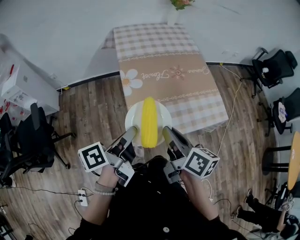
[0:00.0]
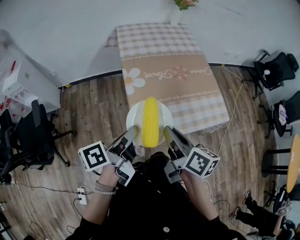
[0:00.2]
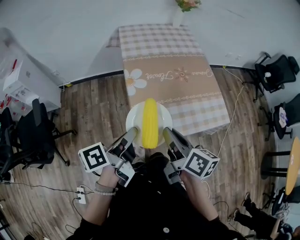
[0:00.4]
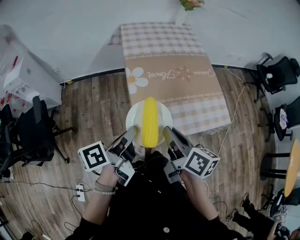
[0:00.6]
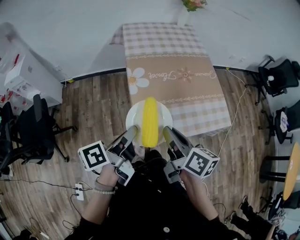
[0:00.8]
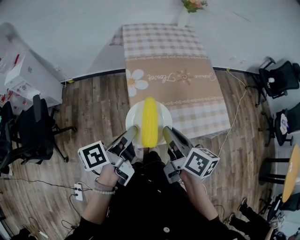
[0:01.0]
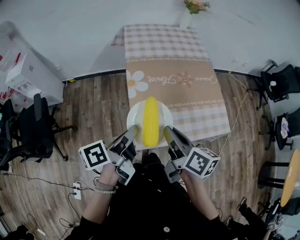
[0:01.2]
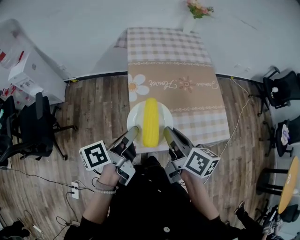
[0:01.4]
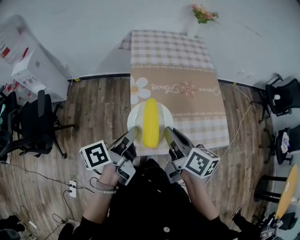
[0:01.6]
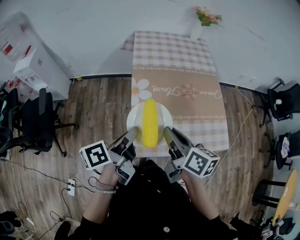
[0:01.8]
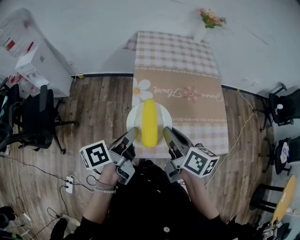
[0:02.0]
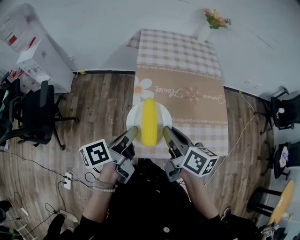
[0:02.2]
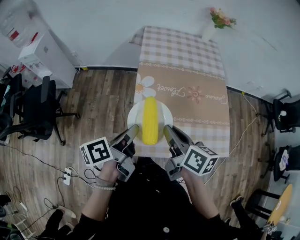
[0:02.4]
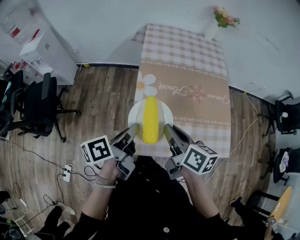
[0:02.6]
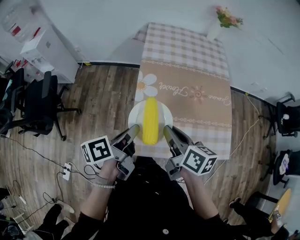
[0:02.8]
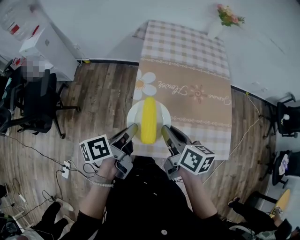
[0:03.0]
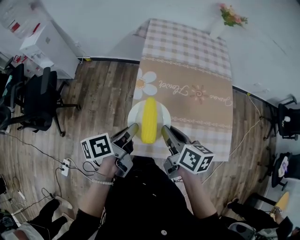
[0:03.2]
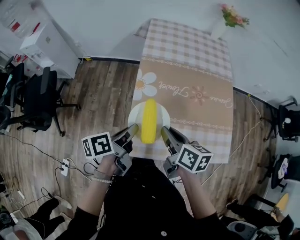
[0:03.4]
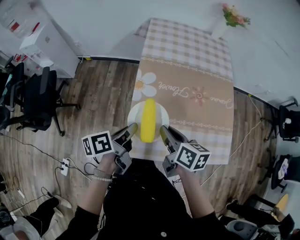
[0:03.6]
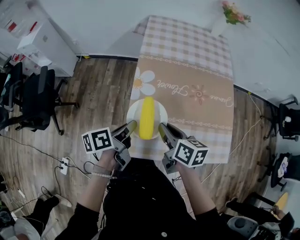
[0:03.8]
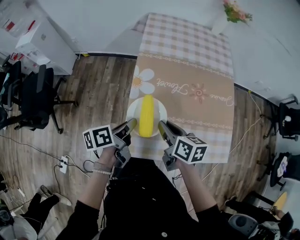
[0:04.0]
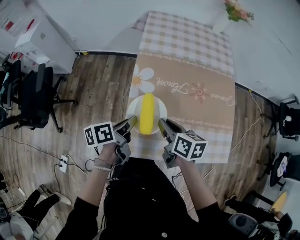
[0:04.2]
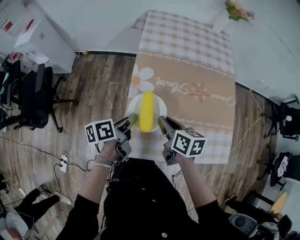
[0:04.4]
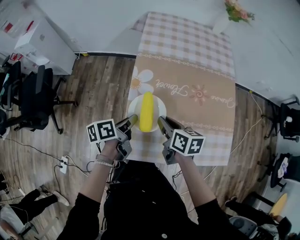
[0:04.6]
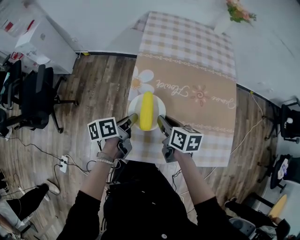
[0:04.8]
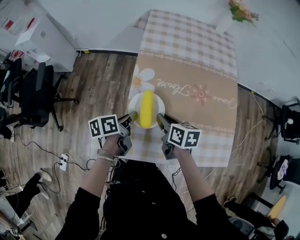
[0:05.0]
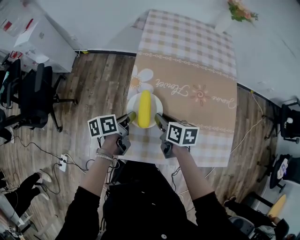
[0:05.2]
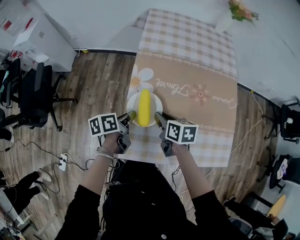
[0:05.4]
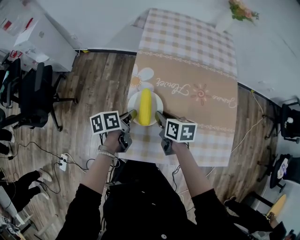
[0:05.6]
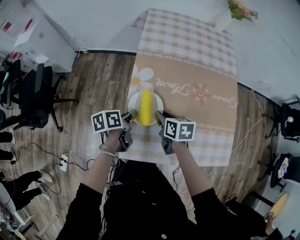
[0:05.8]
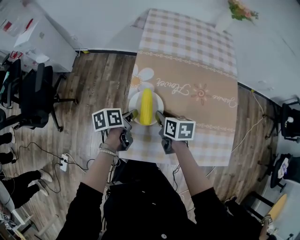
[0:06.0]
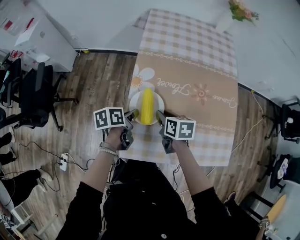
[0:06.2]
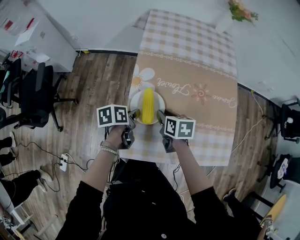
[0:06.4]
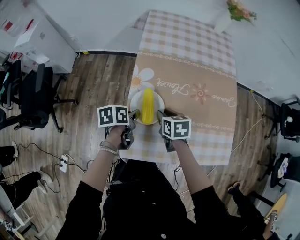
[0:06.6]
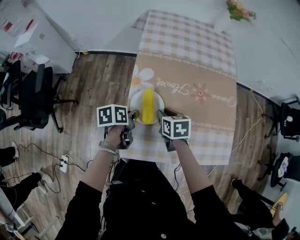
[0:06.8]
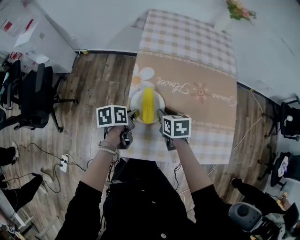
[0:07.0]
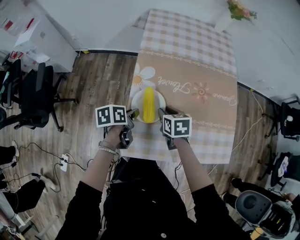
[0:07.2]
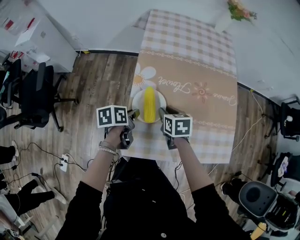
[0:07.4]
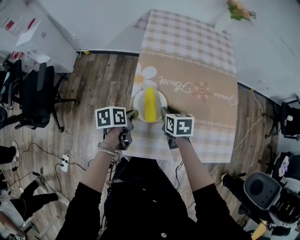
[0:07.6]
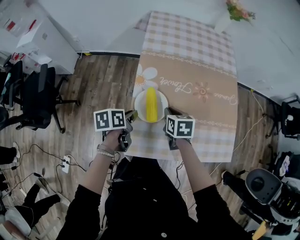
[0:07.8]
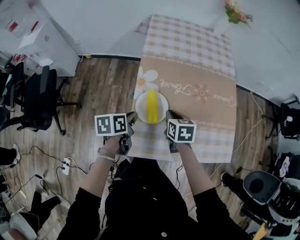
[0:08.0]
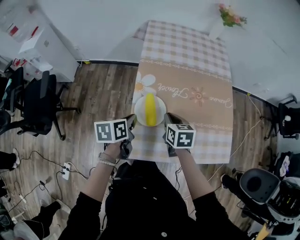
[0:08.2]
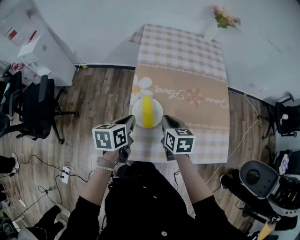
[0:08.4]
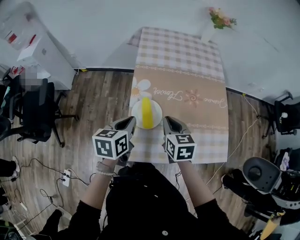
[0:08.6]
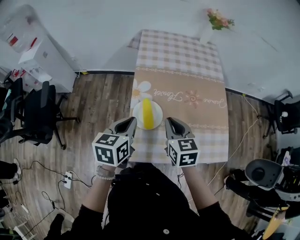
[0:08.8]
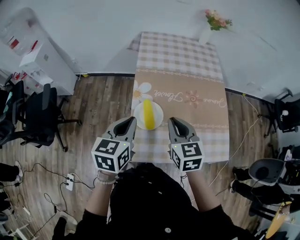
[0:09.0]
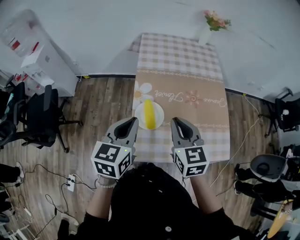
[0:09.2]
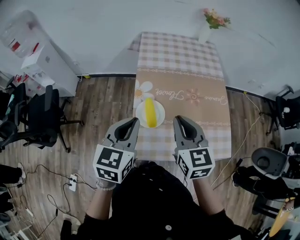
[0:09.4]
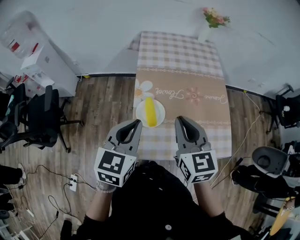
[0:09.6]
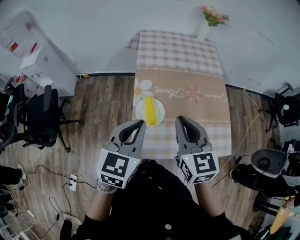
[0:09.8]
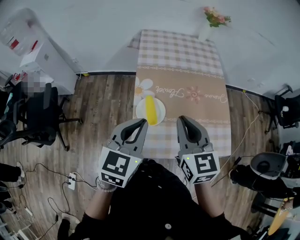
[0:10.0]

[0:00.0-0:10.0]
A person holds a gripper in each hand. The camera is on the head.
0:00.0 to 0:01.4: The right gripper shifts roughly 5 cm forward.
0:01.4 to 0:02.8: The right gripper moves forward, roughly 5 cm; the left gripper moves approximately 5 cm.
0:02.8 to 0:04.2: Both grippers move downward and forward, roughly 10 cm.
0:04.2 to 0:05.8: Both grippers travel together downward, some 10 cm.
0:05.8 to 0:07.2: The grippers stay close to where they were, moving slightly.
0:07.2 to 0:08.6: The two grippers go approximately 15 cm upward. The left gripper changes its angle by approximately 30 degrees. Meanwhile the right gripper closes up.
0:08.6 to 0:10.0: The left gripper shifts some 15 cm upward and backward, and changes its angle by approximately 30 degrees; the right gripper travels upward by roughly 15 cm, and changes its angle by roughly 20 degrees.

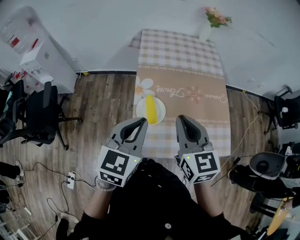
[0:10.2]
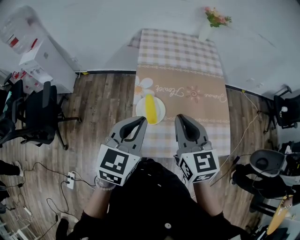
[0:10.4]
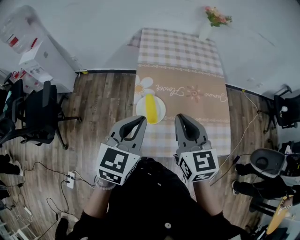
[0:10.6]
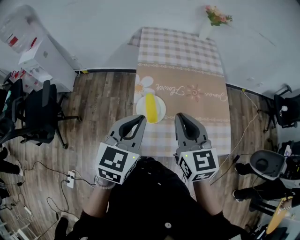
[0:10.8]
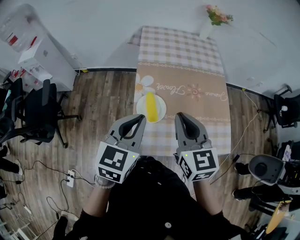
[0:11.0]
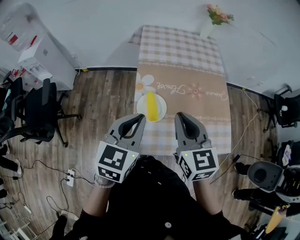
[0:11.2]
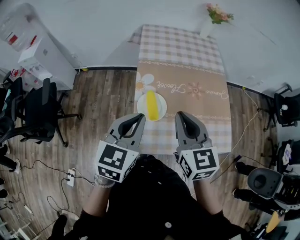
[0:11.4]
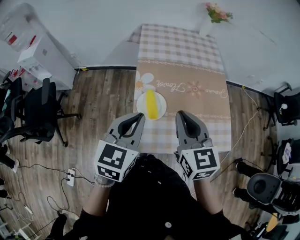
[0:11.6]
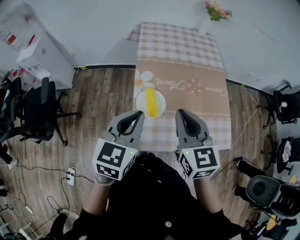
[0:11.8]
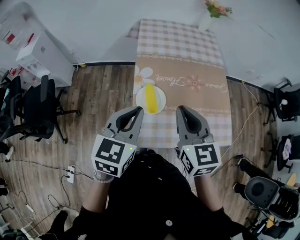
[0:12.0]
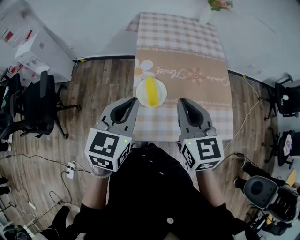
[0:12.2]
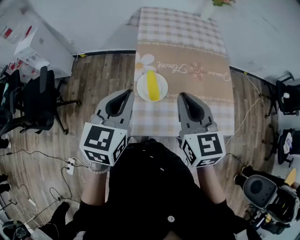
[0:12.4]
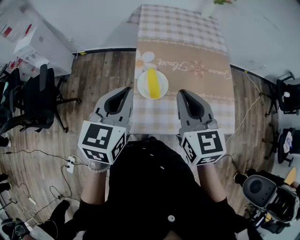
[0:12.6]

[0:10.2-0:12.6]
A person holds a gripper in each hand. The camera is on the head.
0:10.2 to 0:12.6: The grippers move only a little.

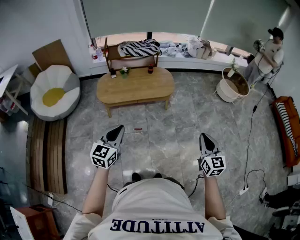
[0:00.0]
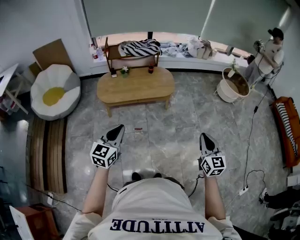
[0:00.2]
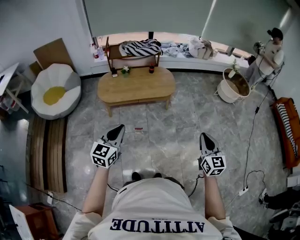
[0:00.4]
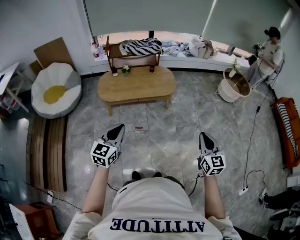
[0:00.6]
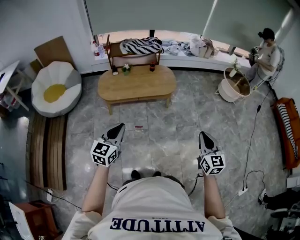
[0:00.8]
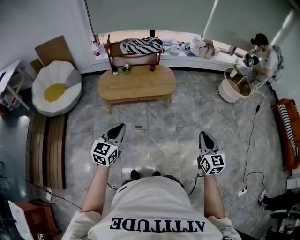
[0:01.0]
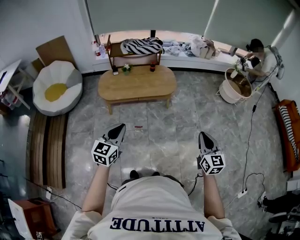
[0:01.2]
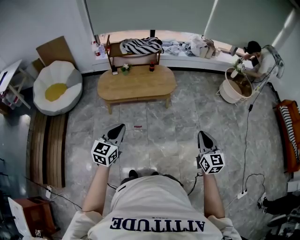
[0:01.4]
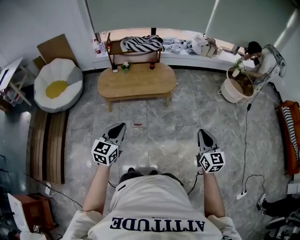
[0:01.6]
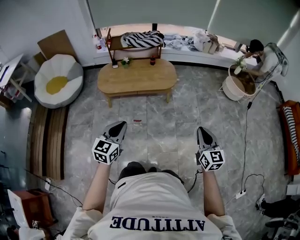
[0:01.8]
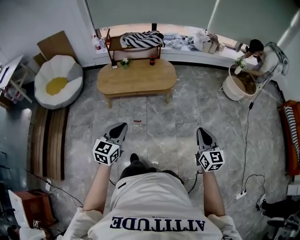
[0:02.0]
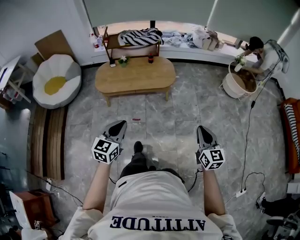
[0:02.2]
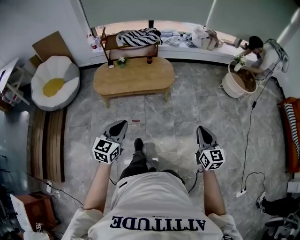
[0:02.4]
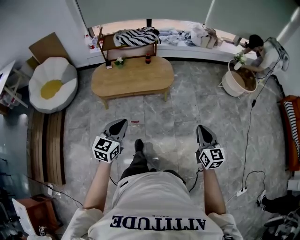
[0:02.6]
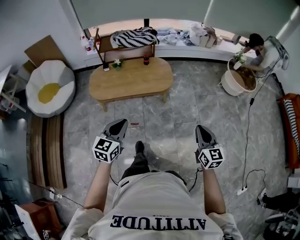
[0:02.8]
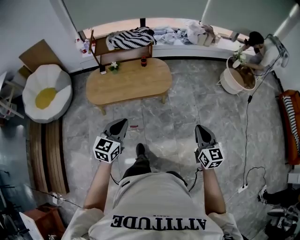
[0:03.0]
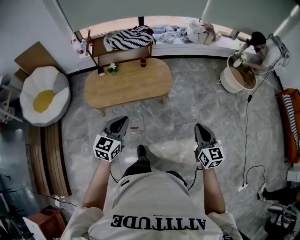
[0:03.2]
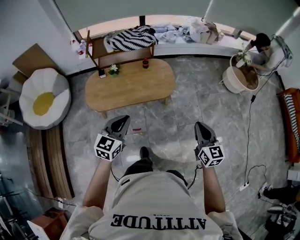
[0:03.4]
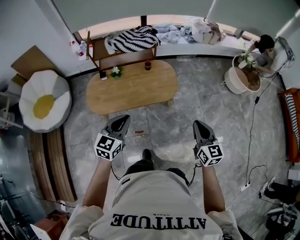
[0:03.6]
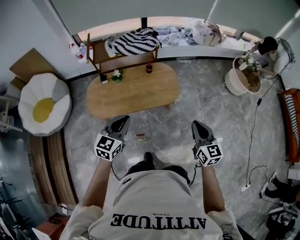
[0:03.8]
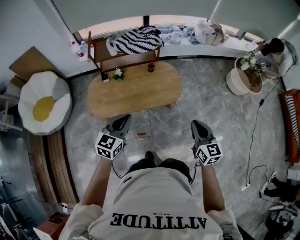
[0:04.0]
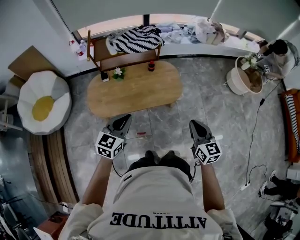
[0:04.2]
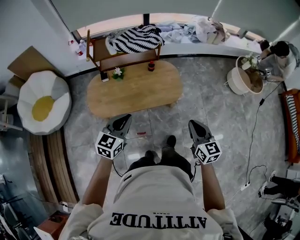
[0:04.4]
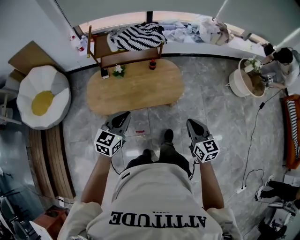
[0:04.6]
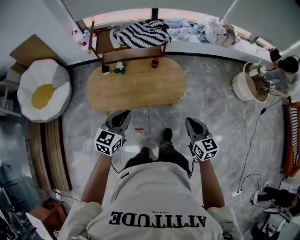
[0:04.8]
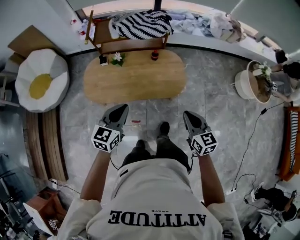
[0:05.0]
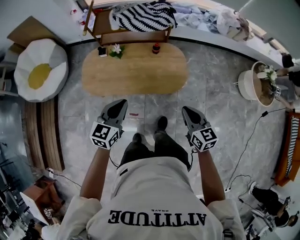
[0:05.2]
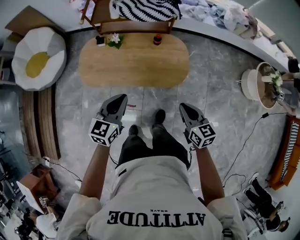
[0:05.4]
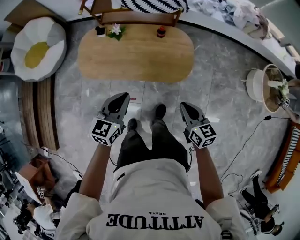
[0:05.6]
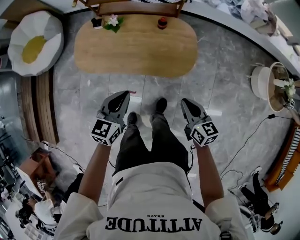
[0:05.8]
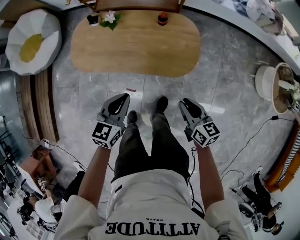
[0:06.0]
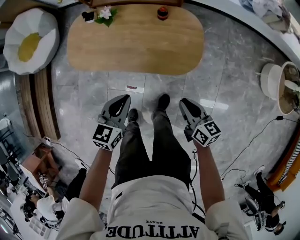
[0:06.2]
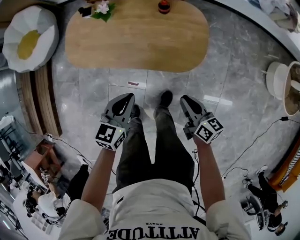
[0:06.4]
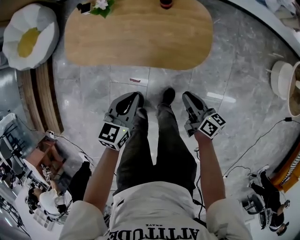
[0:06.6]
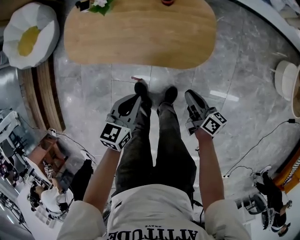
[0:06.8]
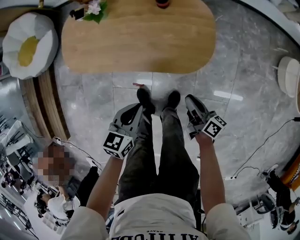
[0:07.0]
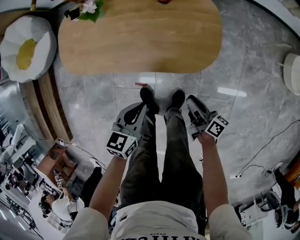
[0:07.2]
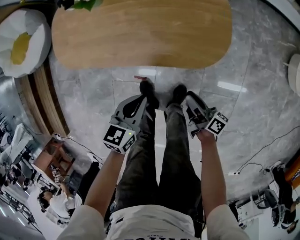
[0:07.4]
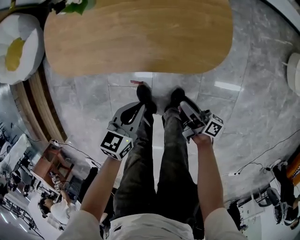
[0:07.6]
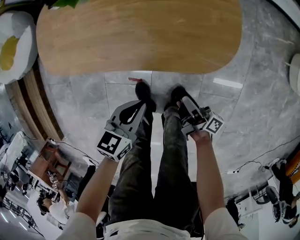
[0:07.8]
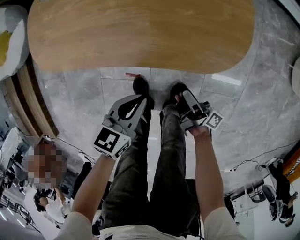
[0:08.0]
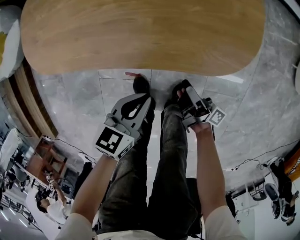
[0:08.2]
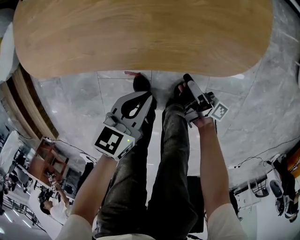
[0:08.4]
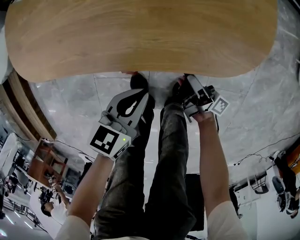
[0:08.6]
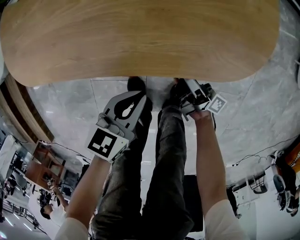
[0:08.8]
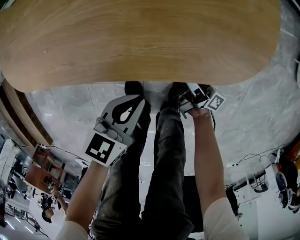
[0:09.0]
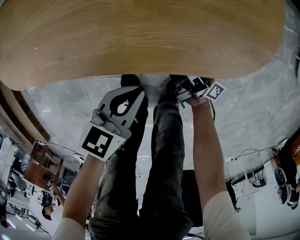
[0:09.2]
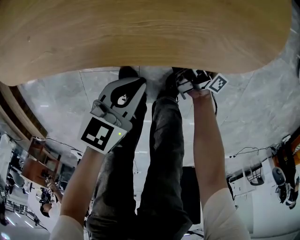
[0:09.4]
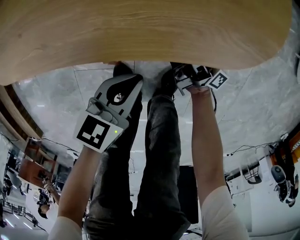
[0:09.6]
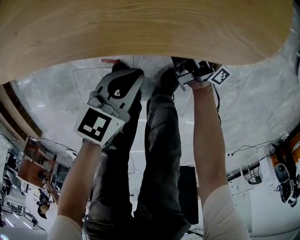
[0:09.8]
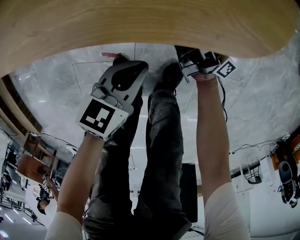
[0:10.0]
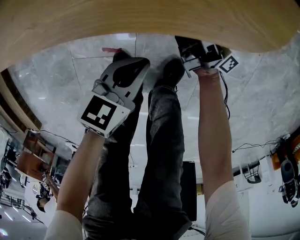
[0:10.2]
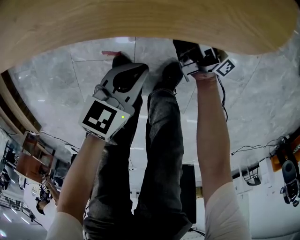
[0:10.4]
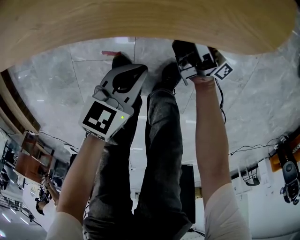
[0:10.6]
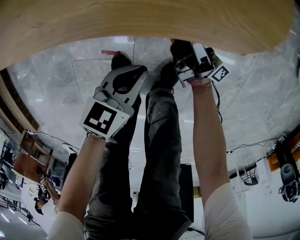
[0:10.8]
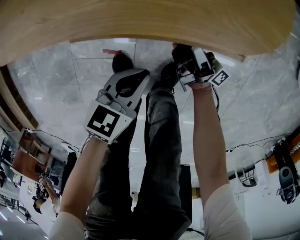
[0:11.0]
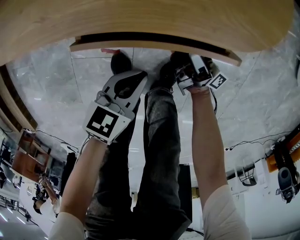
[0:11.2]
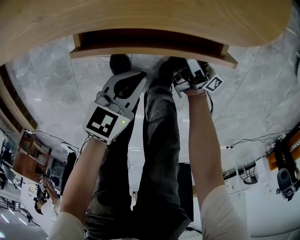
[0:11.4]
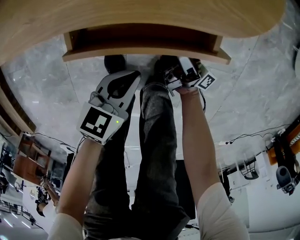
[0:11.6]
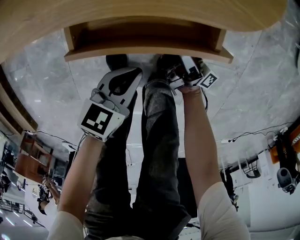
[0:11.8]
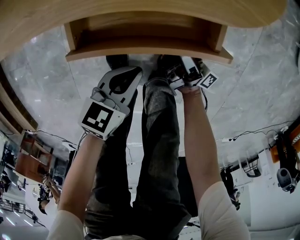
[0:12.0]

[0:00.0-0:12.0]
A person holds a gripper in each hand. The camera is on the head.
0:00.0 to 0:01.6: The grippers both shift to the right by roughly 5 cm.
0:01.6 to 0:03.0: The two grippers go about 20 cm forward.
0:03.0 to 0:04.4: The grippers both shift forward and to the left by about 25 cm.
0:04.4 to 0:06.0: The left gripper shifts about 25 cm downward, to the right and forward, and rotates approximately 20 degrees. The right gripper travels downward and forward by approximately 30 cm, and changes its angle by roughly 30 degrees.
0:06.0 to 0:07.6: Both grippers move downward, about 30 cm. The right gripper twists about 50 degrees clockwise, seen from behind.
0:07.6 to 0:09.0: The grippers both shift downward by about 20 cm. The right gripper opens up.
0:09.0 to 0:10.4: The left gripper heads downward, covering about 5 cm.
0:10.4 to 0:12.0: The right gripper heads backward, covering about 10 cm. The left gripper heads backward, covering some 5 cm.
